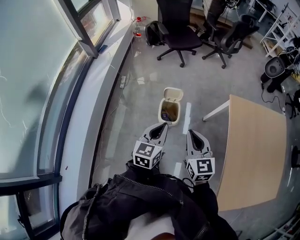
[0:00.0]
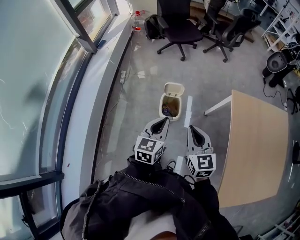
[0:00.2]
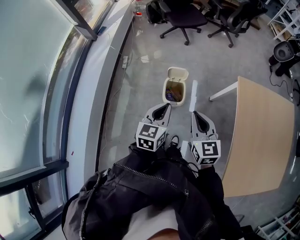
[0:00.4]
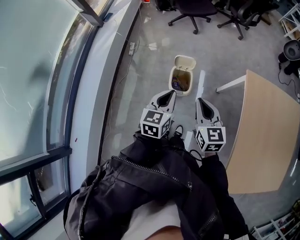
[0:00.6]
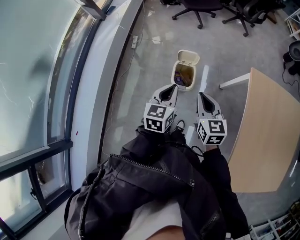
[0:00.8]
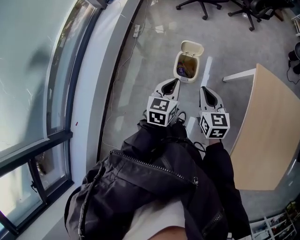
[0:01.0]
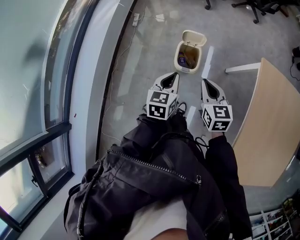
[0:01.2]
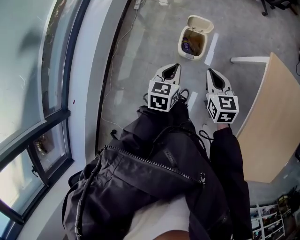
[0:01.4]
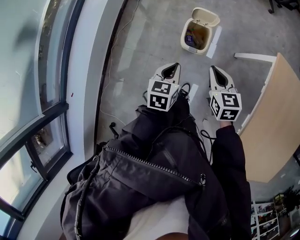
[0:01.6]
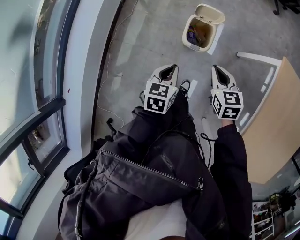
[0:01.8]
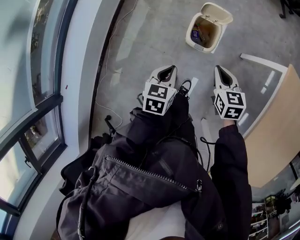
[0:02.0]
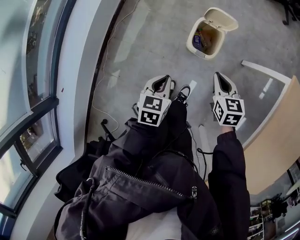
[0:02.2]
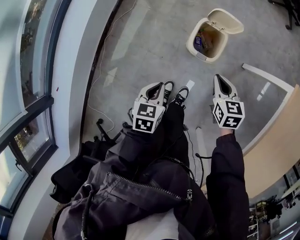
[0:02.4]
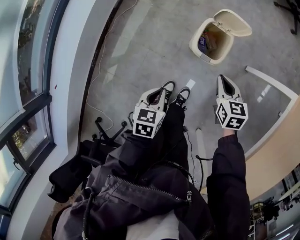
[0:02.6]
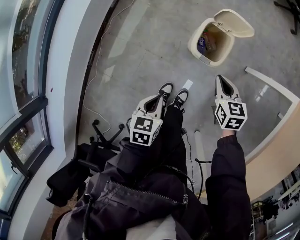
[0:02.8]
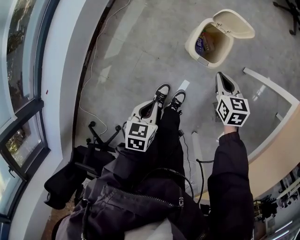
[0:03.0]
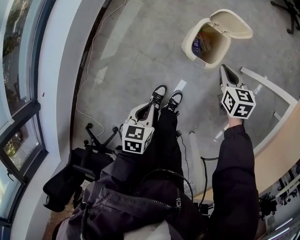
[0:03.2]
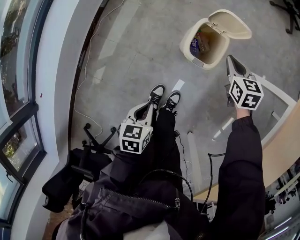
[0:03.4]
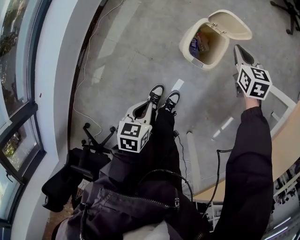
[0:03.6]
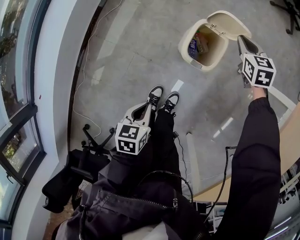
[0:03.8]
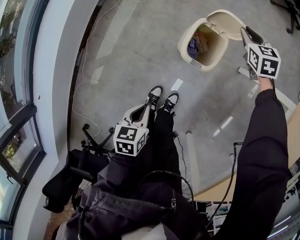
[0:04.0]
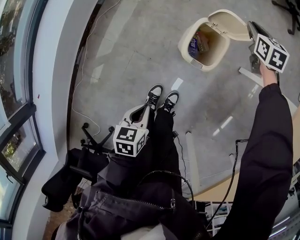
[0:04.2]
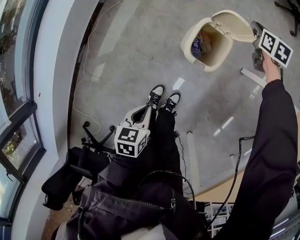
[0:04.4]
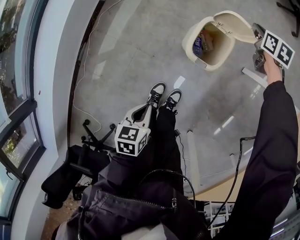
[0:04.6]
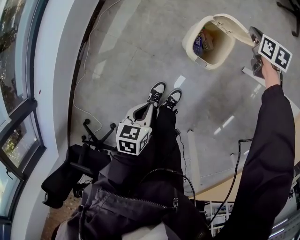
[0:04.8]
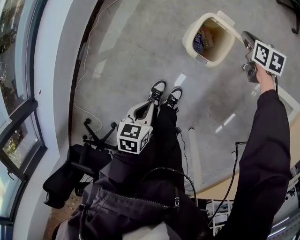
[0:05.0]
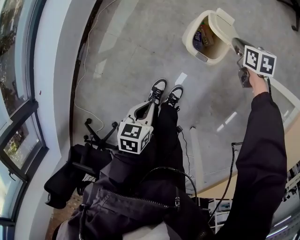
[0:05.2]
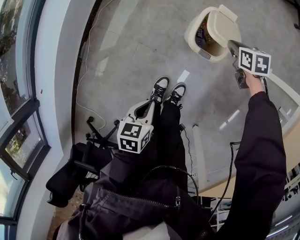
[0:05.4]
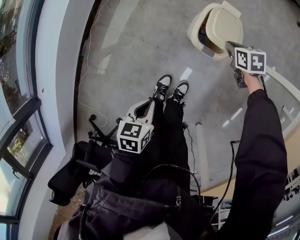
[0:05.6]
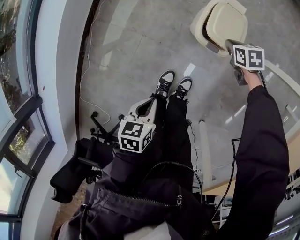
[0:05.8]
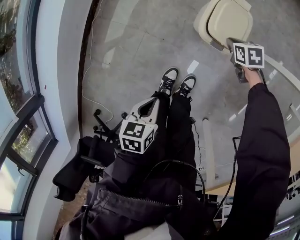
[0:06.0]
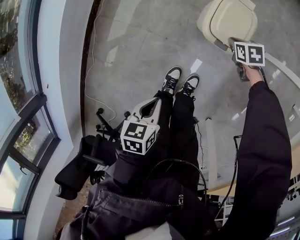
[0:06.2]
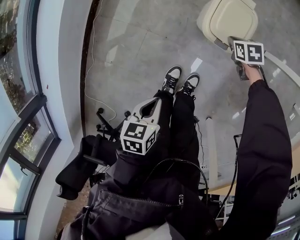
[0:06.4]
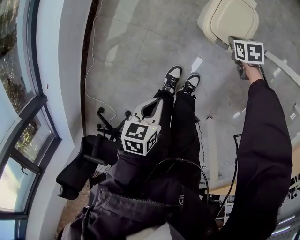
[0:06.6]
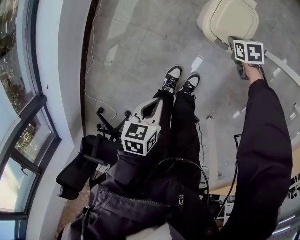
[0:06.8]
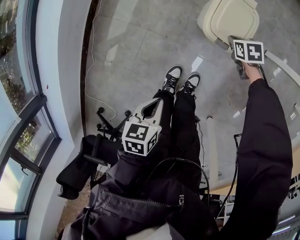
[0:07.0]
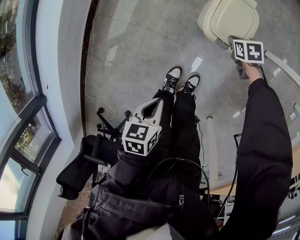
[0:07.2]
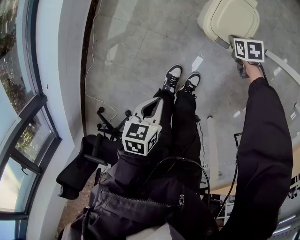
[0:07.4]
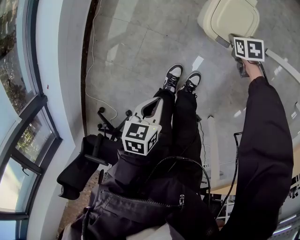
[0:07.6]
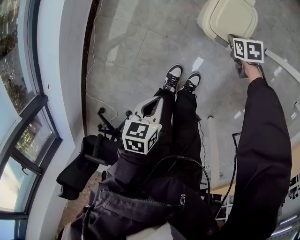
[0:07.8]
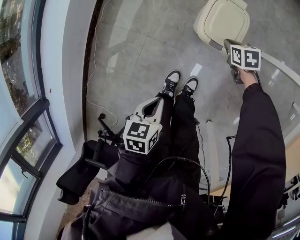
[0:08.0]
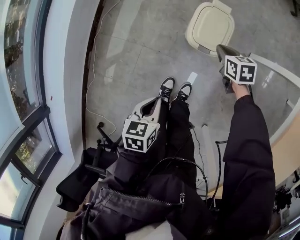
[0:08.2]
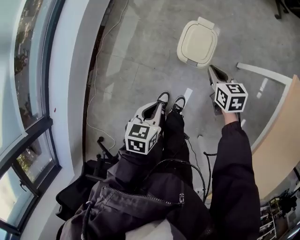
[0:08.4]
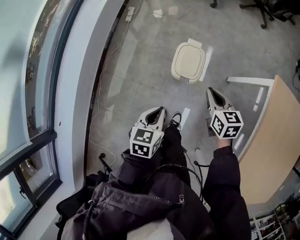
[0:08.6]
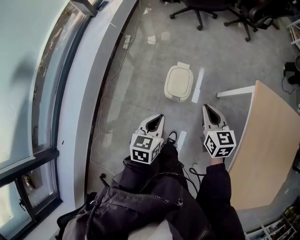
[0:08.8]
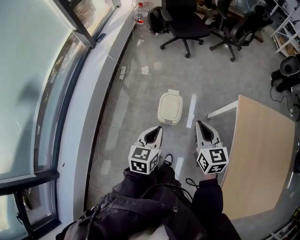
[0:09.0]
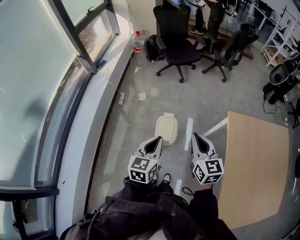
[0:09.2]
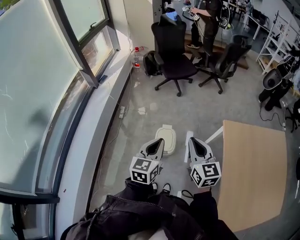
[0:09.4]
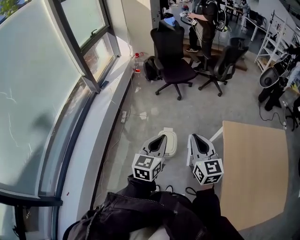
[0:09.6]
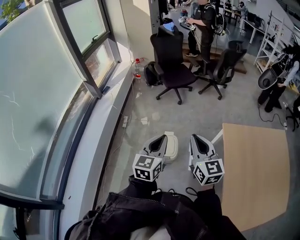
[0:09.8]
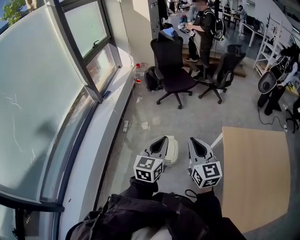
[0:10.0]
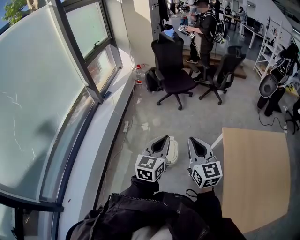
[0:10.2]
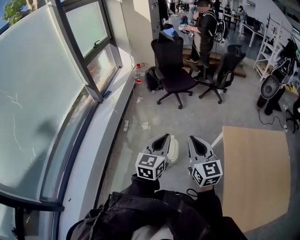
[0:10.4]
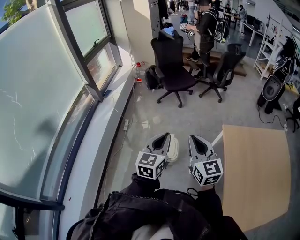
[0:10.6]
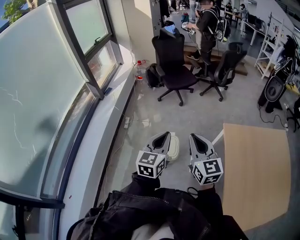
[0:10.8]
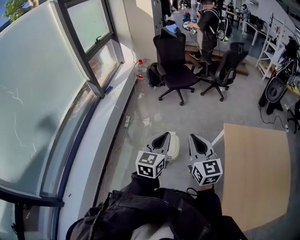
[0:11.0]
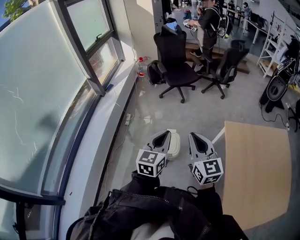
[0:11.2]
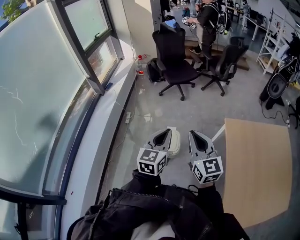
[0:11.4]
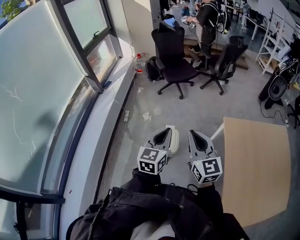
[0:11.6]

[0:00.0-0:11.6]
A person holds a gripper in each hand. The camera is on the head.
0:00.0 to 0:01.4: The left gripper heads downward, covering about 20 cm, and turns by about 20 degrees. The right gripper shifts approximately 20 cm downward and forward, and turns by some 20 degrees.
0:01.4 to 0:02.8: The right gripper shifts about 30 cm downward. The left gripper moves downward and to the left, some 25 cm, and changes its angle by some 20 degrees.
0:02.8 to 0:04.4: The right gripper moves forward, roughly 30 cm.
0:04.4 to 0:05.8: The right gripper travels backward and downward by approximately 25 cm, and changes its angle by about 30 degrees.
0:05.8 to 0:07.2: The right gripper heads downward, covering roughly 5 cm.
0:07.2 to 0:08.8: The right gripper moves upward, roughly 50 cm, and tips its fingers upward by about 40 degrees, while the left gripper travels upward by about 30 cm, and changes its angle by some 40 degrees.
0:08.8 to 0:10.2: Both grippers travel together upward, about 30 cm. The left gripper swivels roughly 30 degrees; the right gripper turns by about 30 degrees.
0:10.2 to 0:11.6: The grippers move only a little.

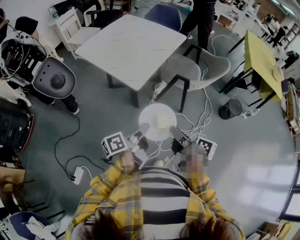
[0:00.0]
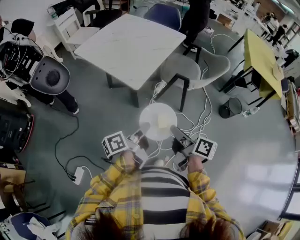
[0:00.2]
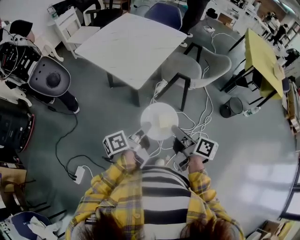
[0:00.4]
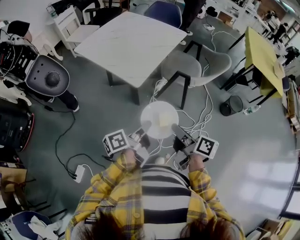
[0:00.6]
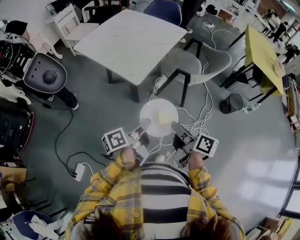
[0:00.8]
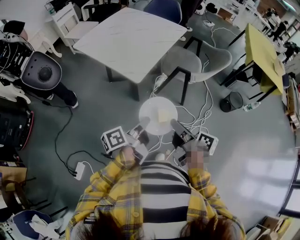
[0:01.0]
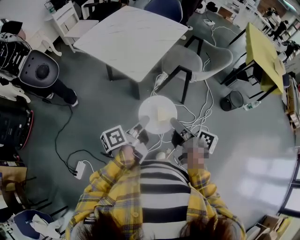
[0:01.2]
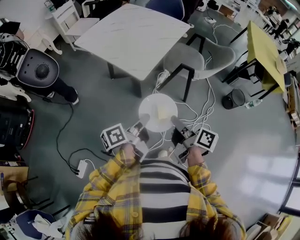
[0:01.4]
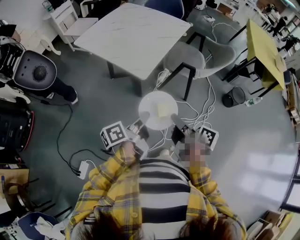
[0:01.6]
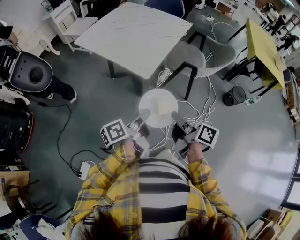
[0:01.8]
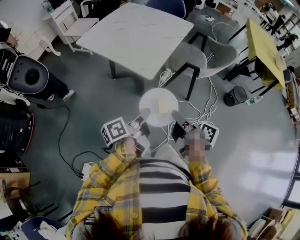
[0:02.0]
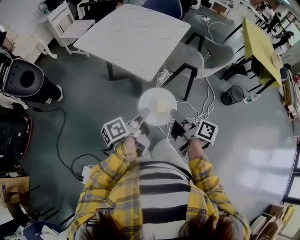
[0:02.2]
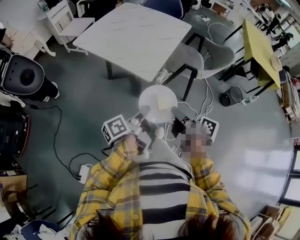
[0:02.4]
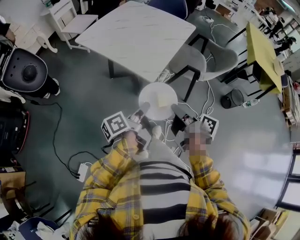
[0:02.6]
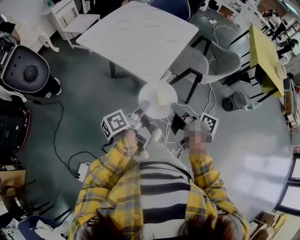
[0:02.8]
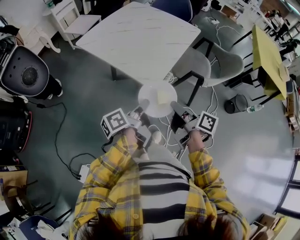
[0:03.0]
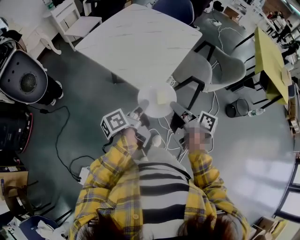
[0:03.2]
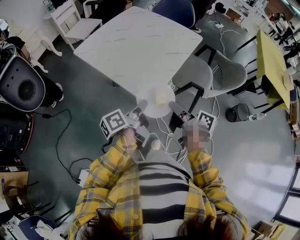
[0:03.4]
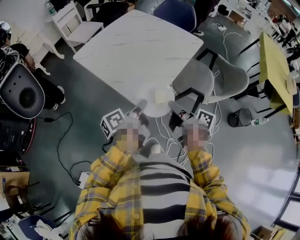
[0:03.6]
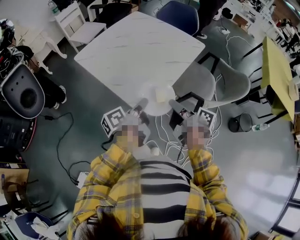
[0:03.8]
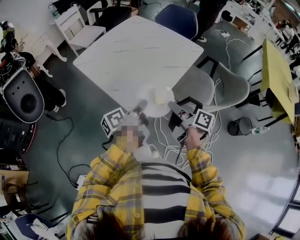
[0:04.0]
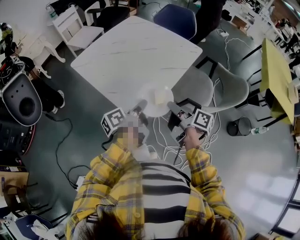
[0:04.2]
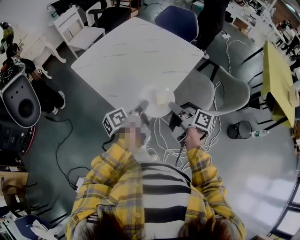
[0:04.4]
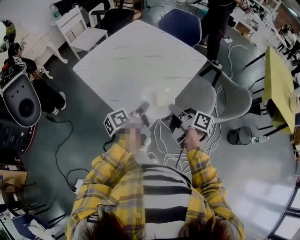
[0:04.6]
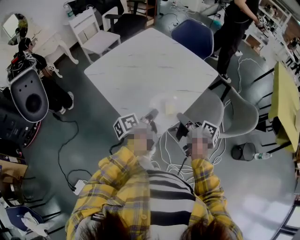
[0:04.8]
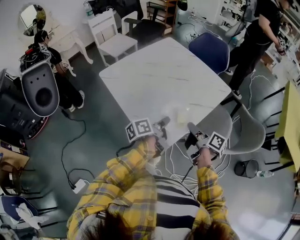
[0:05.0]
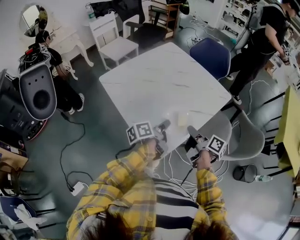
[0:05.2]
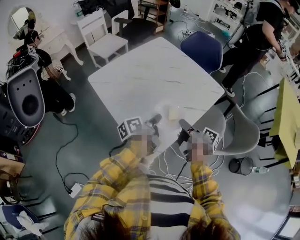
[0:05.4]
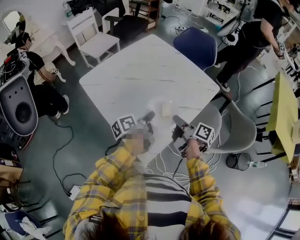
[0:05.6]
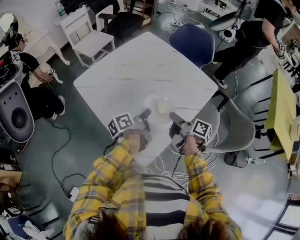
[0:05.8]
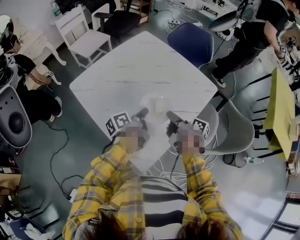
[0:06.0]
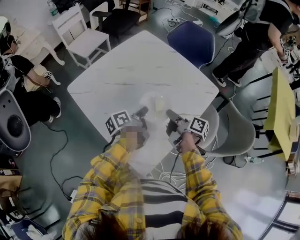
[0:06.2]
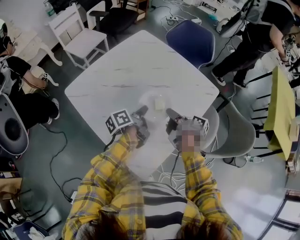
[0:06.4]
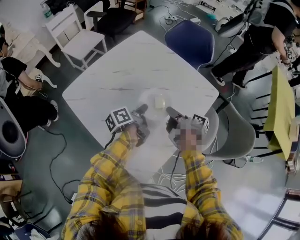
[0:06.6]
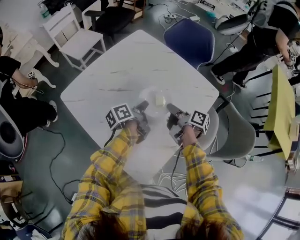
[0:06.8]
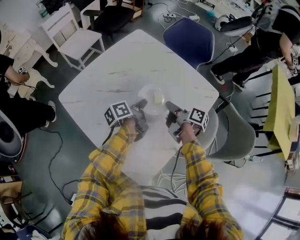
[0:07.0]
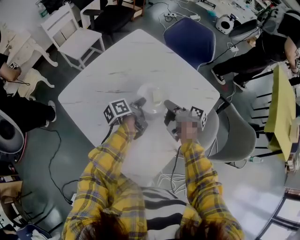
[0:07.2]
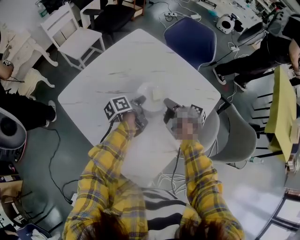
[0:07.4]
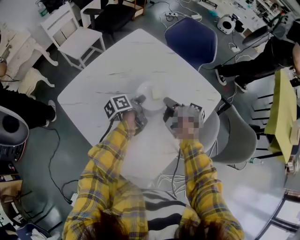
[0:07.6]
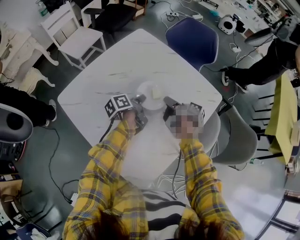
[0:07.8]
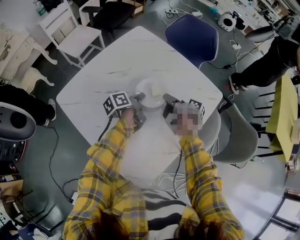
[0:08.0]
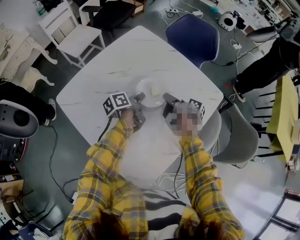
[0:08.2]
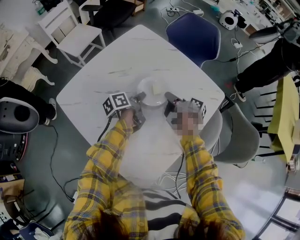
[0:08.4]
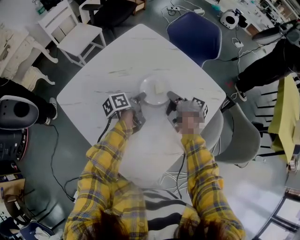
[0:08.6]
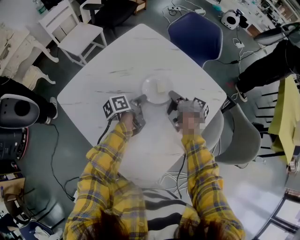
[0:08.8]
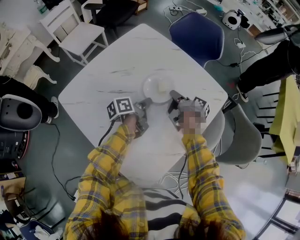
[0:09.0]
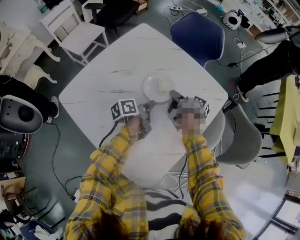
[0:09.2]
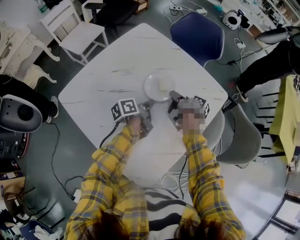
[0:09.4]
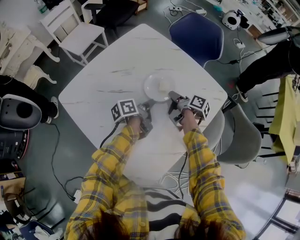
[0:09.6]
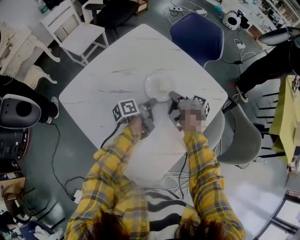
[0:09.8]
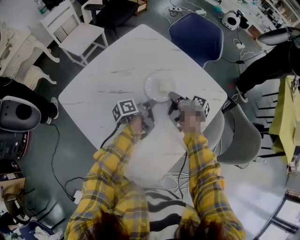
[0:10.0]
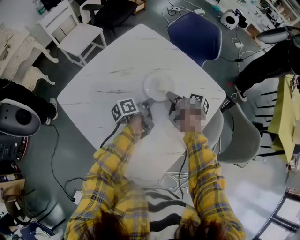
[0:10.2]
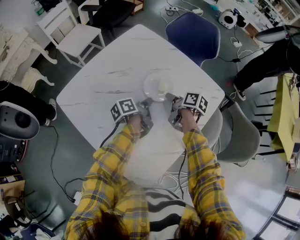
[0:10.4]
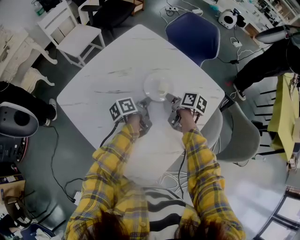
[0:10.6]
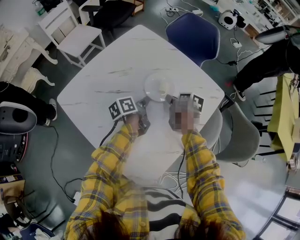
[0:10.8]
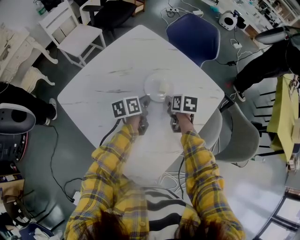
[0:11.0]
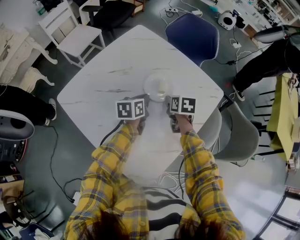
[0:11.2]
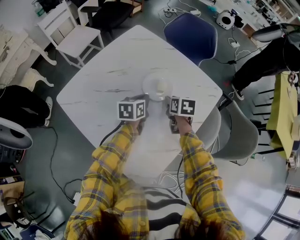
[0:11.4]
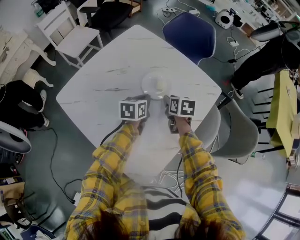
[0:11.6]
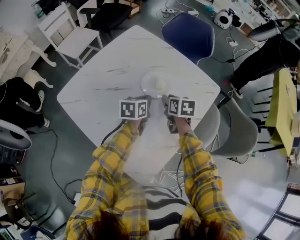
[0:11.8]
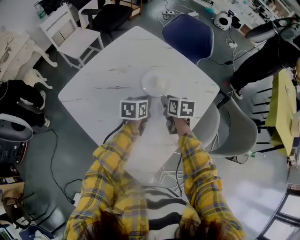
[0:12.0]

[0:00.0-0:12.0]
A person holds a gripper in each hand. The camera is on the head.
0:00.0 to 0:01.6: The left gripper heads to the left, covering some 5 cm.
0:01.6 to 0:03.0: The grippers both shift forward by roughly 10 cm.
0:03.0 to 0:04.4: The grippers both shift forward and to the right by roughly 20 cm.
0:04.4 to 0:06.0: The two grippers go about 20 cm forward.
0:06.0 to 0:07.6: Both grippers move forward, approximately 15 cm.
0:07.6 to 0:09.0: There are only small adjustments of the grippers.
0:09.0 to 0:10.4: The right gripper turns by roughly 20 degrees, and opens its fingers.
0:10.4 to 0:12.0: The right gripper shifts by roughly 5 cm, and changes its angle by some 40 degrees. The left gripper twists about 50 degrees clockwise, seen from behind.
